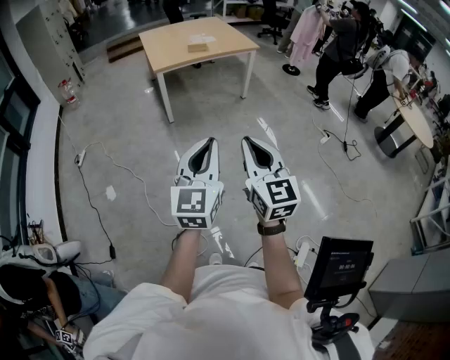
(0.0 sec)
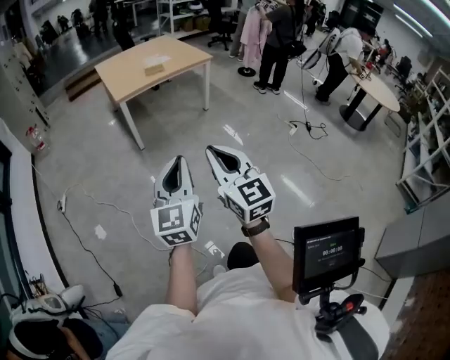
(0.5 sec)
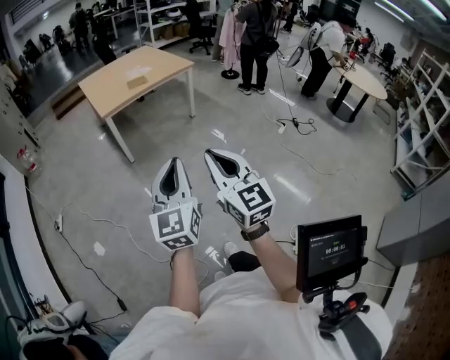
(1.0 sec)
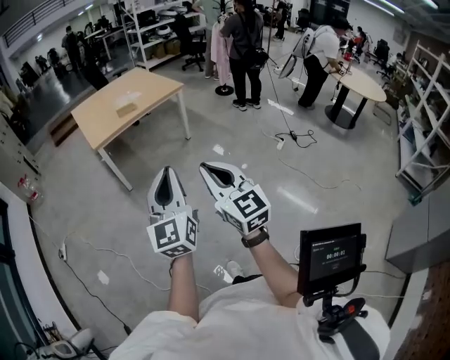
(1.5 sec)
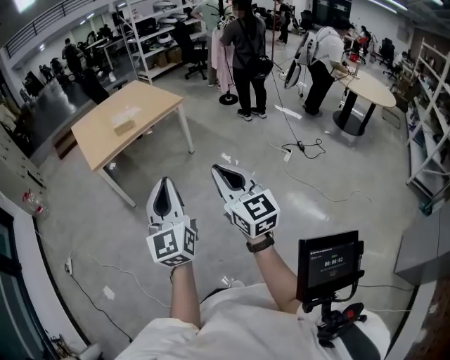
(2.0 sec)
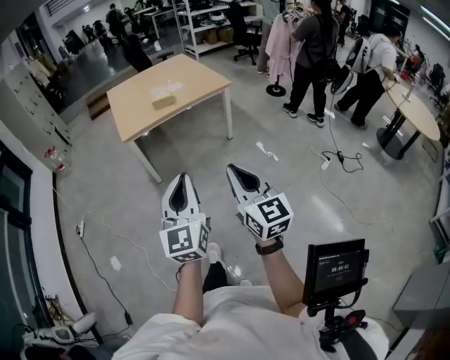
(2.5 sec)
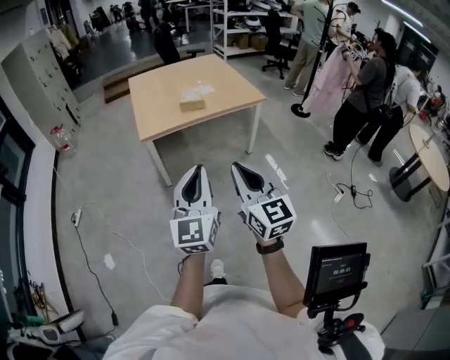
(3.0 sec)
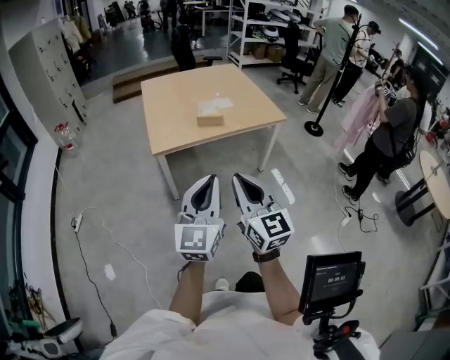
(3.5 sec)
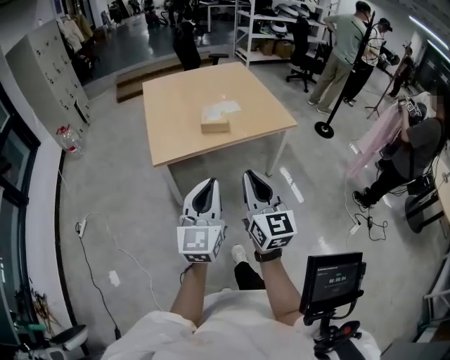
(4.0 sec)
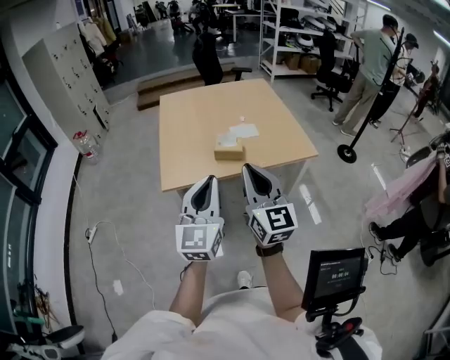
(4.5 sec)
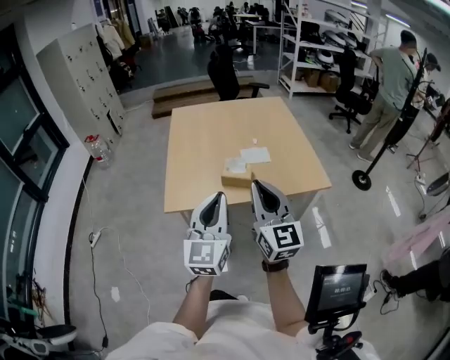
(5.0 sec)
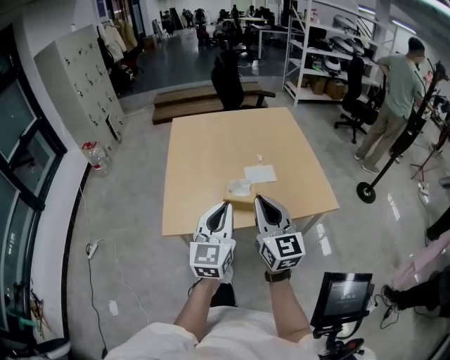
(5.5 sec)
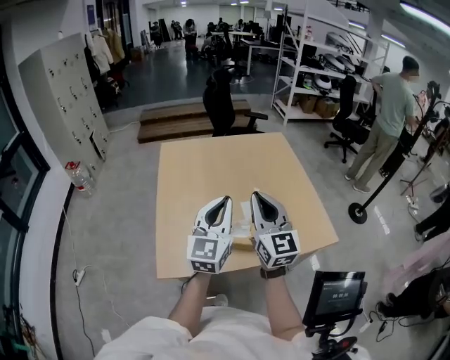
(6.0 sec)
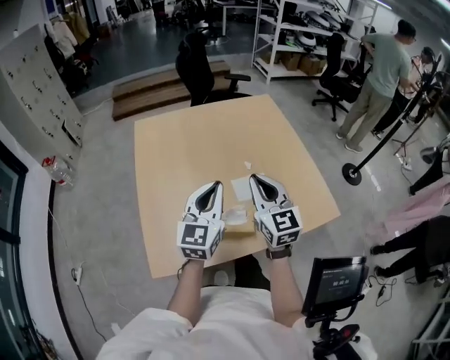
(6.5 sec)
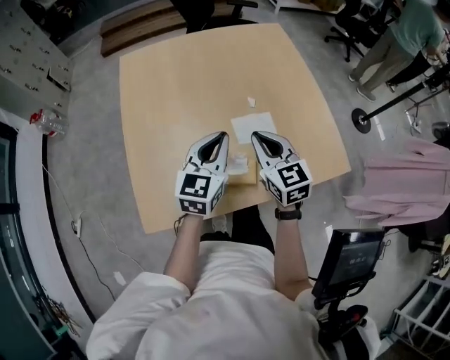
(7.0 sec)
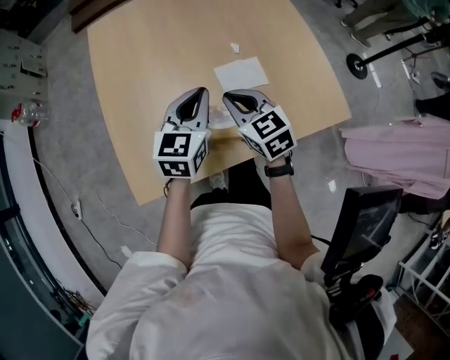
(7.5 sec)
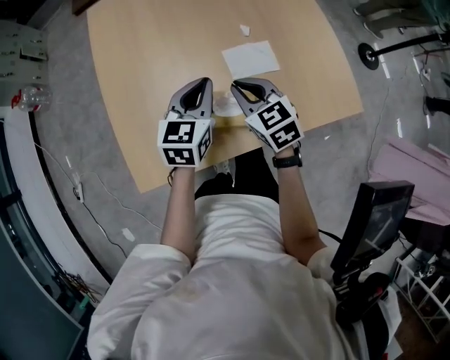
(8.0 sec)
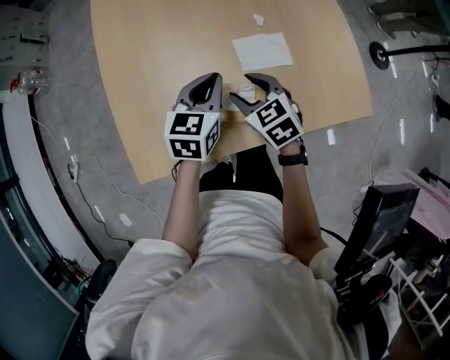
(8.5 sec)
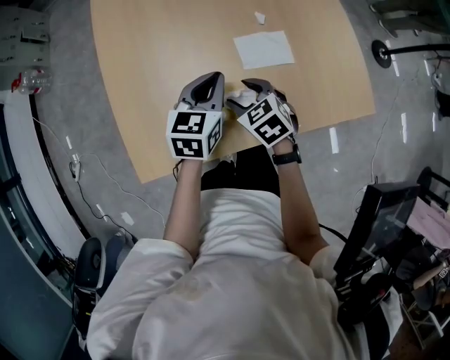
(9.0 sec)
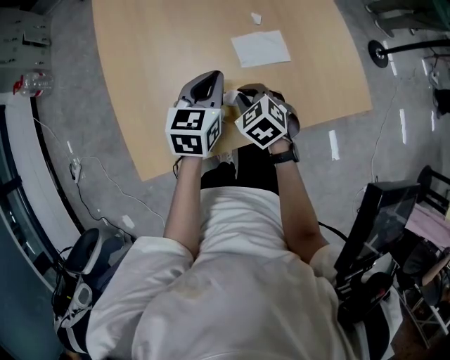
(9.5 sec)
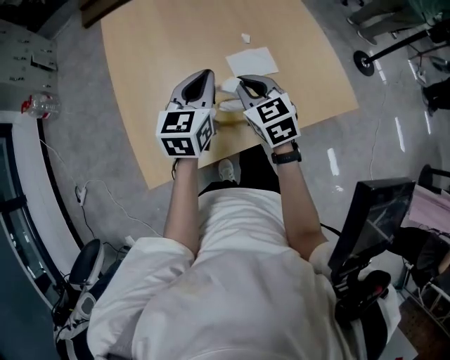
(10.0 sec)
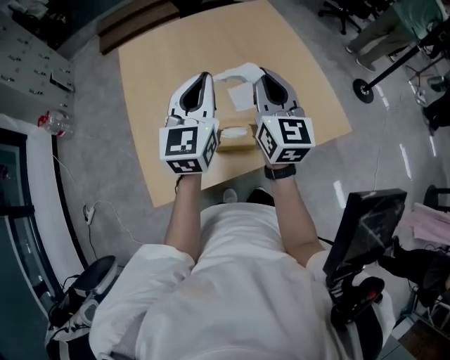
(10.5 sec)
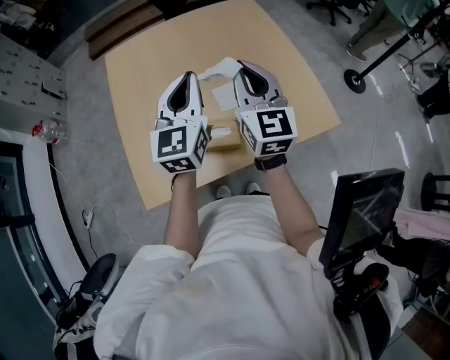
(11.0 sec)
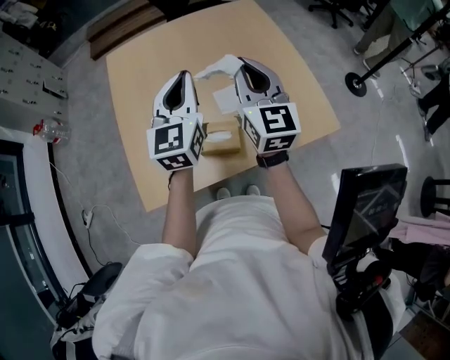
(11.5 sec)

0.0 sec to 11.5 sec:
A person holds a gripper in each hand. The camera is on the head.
0.0 sec to 2.0 sec: The grippers both shift forward and to the right by some 25 cm.
2.0 sec to 4.0 sec: The two grippers travel together, forward, about 40 cm.
4.0 sec to 6.0 sec: The pair of grippers is taken forward, approximately 50 cm.
6.0 sec to 7.5 sec: The right gripper is displaced downward by roughly 20 cm, and tips its fingers downward by about 40 degrees; the left gripper is displaced downward and forward by roughly 20 cm, and turns by approximately 30 degrees.
7.5 sec to 9.5 sec: The left gripper shifts roughly 5 cm downward, while the right gripper goes roughly 10 cm downward, changes its angle by some 30 degrees, and opens, then closes once more.
9.5 sec to 11.5 sec: The right gripper moves upward, roughly 25 cm, and angles its fingers upward, by approximately 60 degrees; the left gripper is displaced upward by approximately 15 cm, and changes its angle by about 30 degrees.

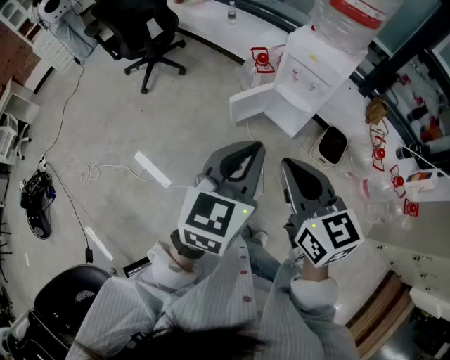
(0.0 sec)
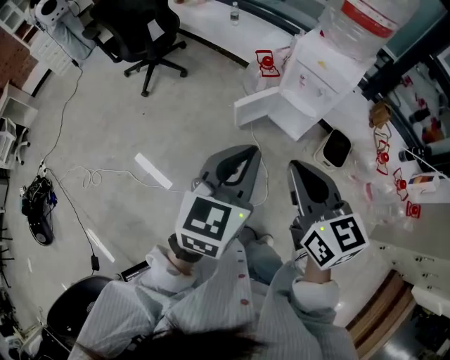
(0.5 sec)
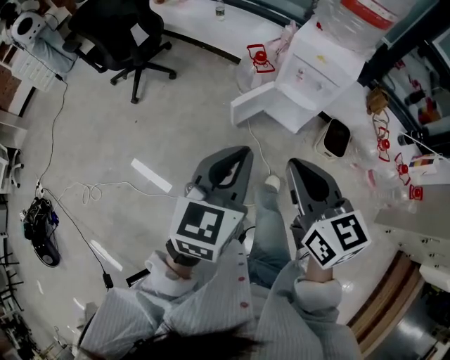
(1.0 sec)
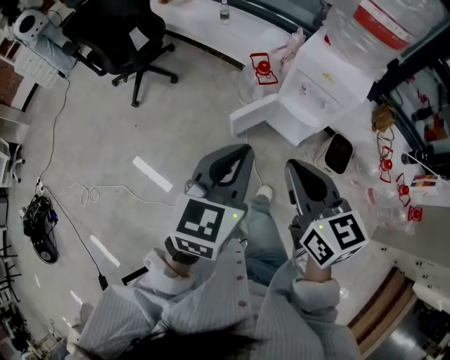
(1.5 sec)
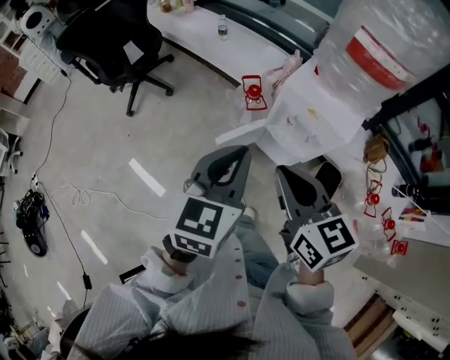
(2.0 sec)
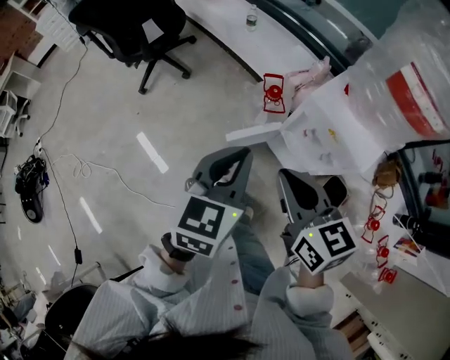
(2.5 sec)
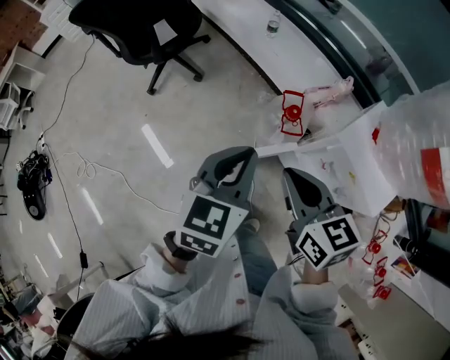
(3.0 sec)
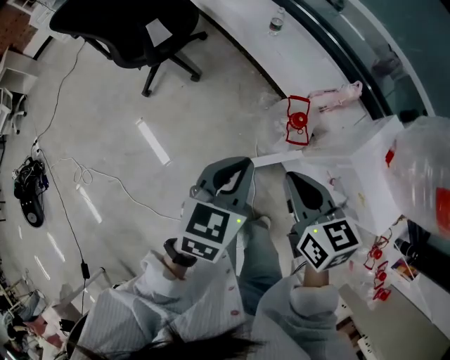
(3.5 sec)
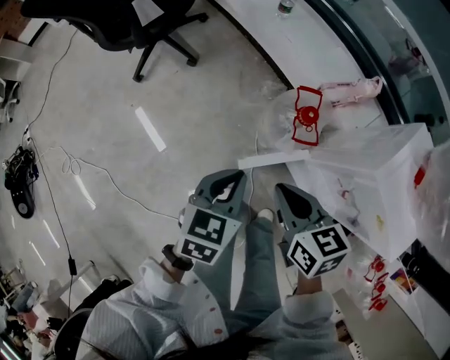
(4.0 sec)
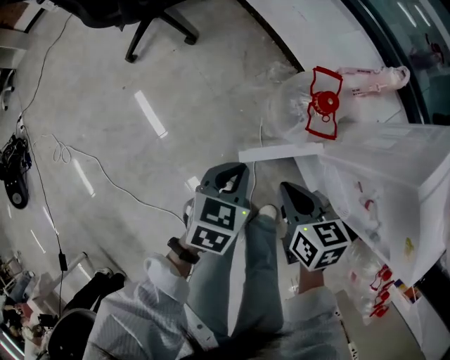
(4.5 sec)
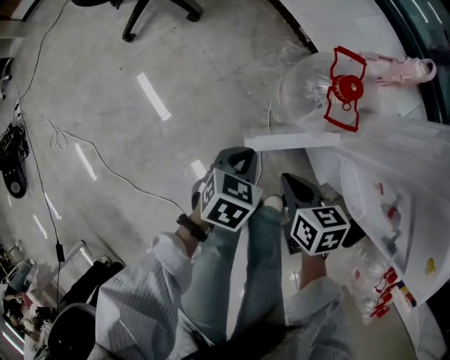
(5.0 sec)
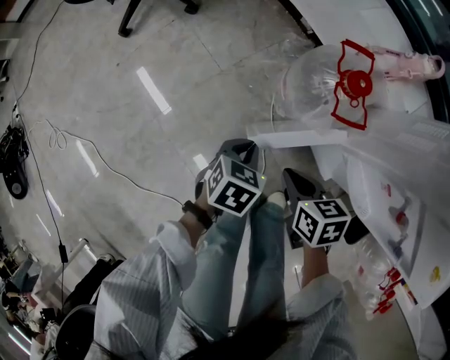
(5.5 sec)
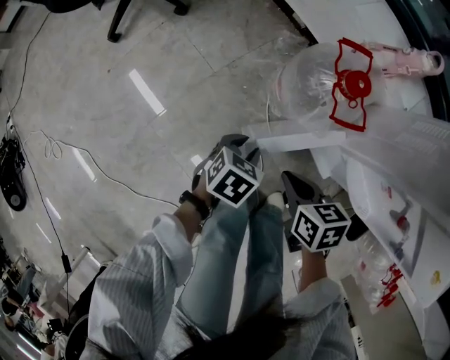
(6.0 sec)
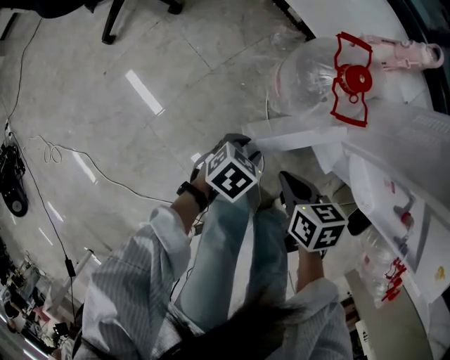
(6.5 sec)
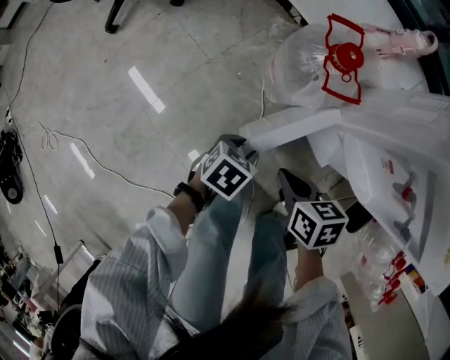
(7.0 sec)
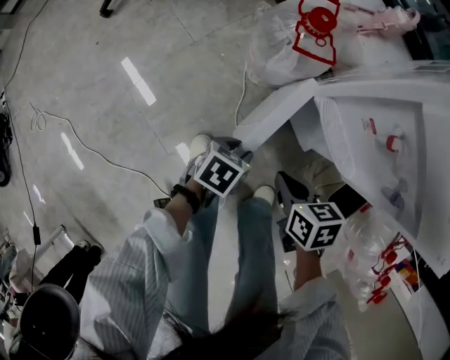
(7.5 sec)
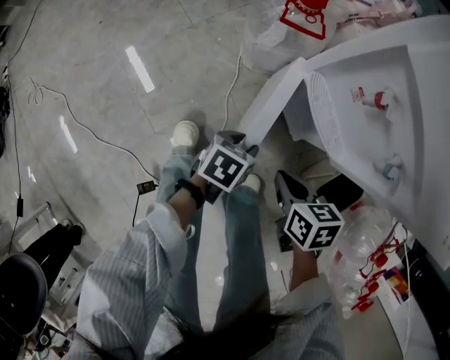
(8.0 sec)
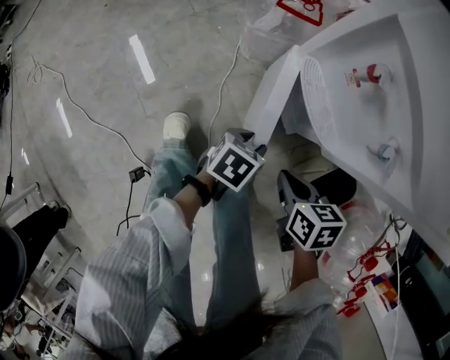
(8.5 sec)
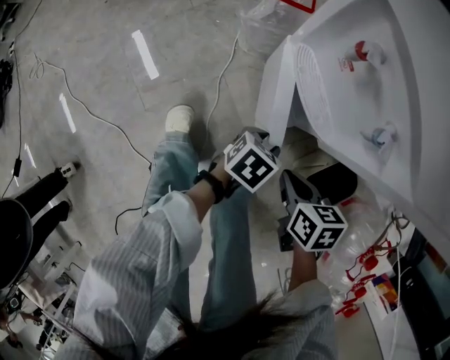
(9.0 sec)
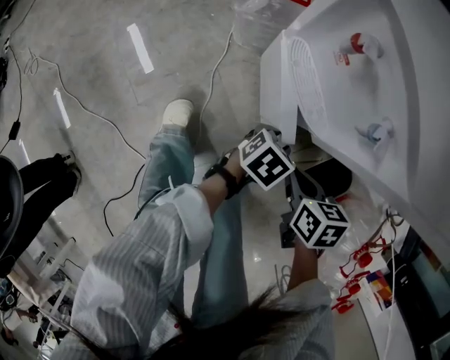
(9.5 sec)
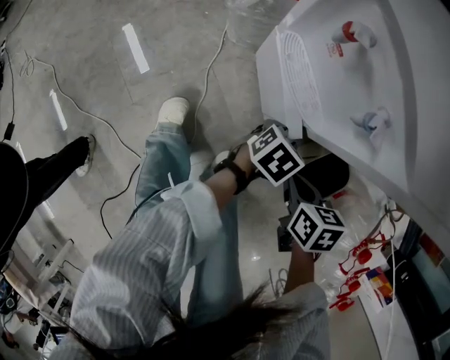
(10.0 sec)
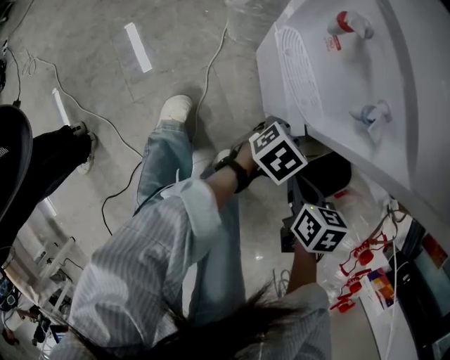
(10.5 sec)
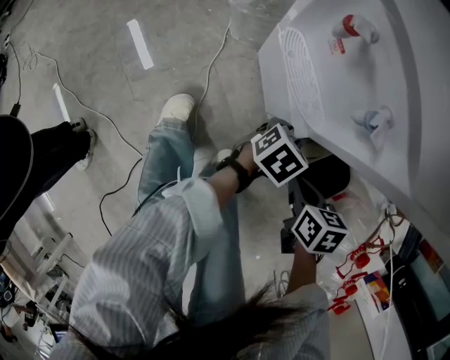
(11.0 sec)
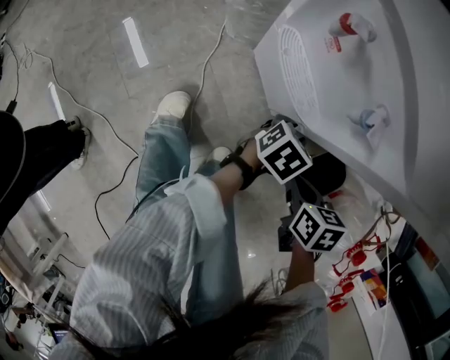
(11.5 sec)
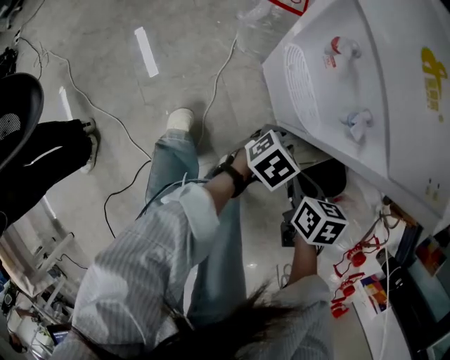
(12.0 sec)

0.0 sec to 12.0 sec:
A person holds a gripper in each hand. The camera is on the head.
0.0 sec to 2.0 sec: The grippers both shift forward by approximately 25 cm.
2.0 sec to 4.0 sec: Both grippers move downward and forward, about 35 cm. The left gripper swivels roughly 30 degrees, while the right gripper swivels approximately 30 degrees.
4.0 sec to 6.0 sec: The two grippers go approximately 30 cm downward. The left gripper turns by some 30 degrees, and opens up; the right gripper rotates about 20 degrees.
6.0 sec to 8.0 sec: Both grippers move to the right and backward, roughly 30 cm.
8.0 sec to 10.0 sec: Both grippers travel together to the right, approximately 20 cm.
10.0 sec to 12.0 sec: The grippers stay close to where they were, moving slightly.

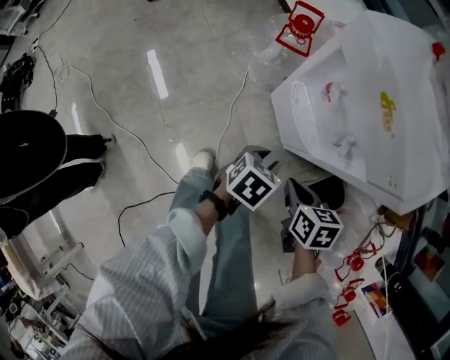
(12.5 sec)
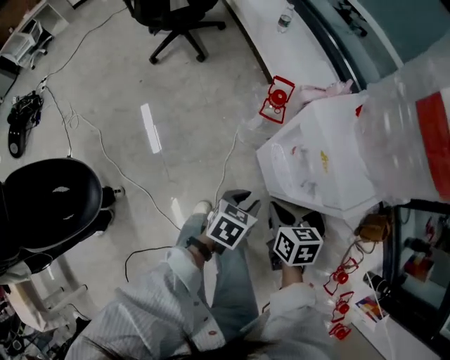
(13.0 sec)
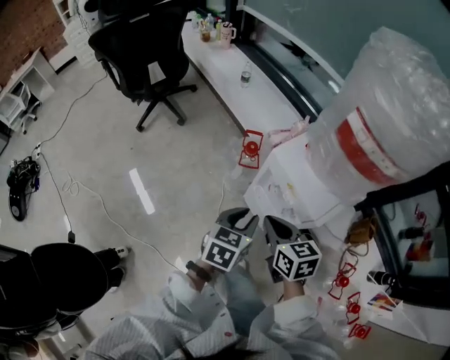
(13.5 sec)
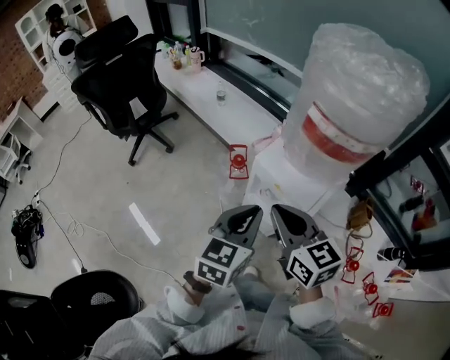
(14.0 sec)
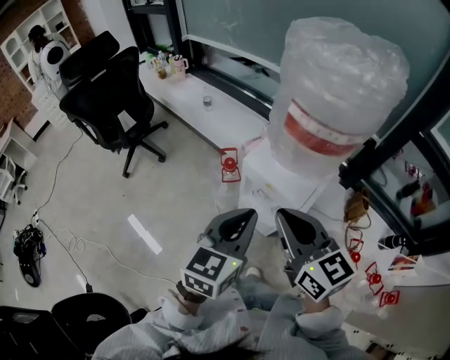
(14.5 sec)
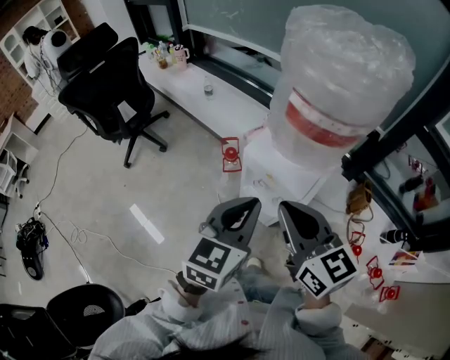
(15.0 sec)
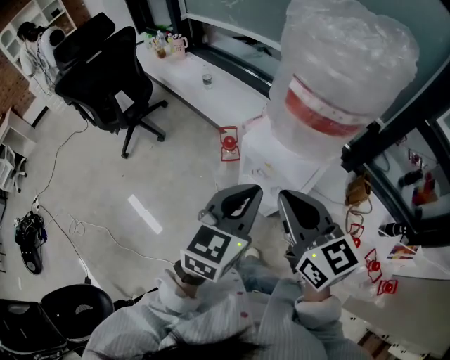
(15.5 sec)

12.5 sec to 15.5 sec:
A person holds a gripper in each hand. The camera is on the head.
12.5 sec to 14.0 sec: The grippers both shift upward by roughly 50 cm. The left gripper tilts its fingers approximately 40 degrees upward, and closes its fingers; the right gripper points its fingers about 40 degrees further upward.
14.0 sec to 15.5 sec: The right gripper moves upward, approximately 5 cm, while the left gripper changes place by some 5 cm.
